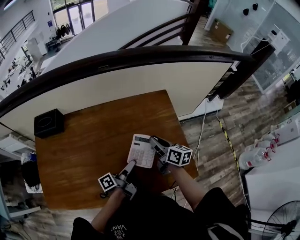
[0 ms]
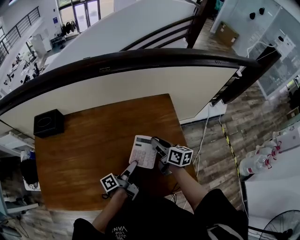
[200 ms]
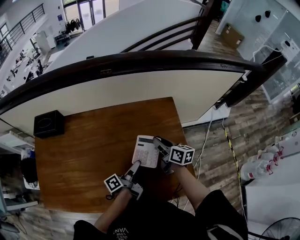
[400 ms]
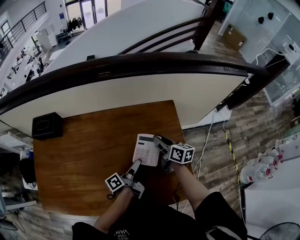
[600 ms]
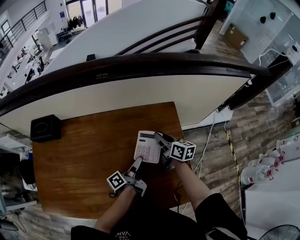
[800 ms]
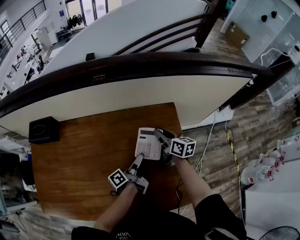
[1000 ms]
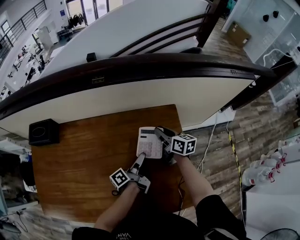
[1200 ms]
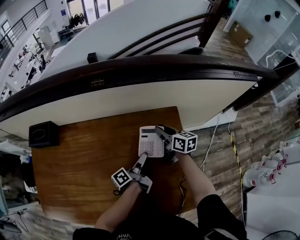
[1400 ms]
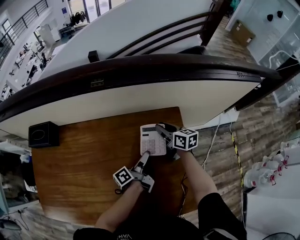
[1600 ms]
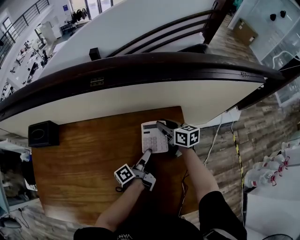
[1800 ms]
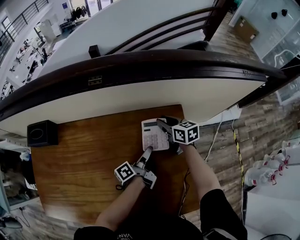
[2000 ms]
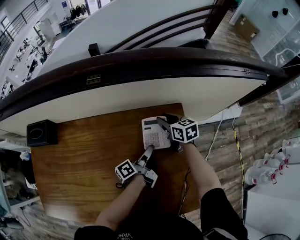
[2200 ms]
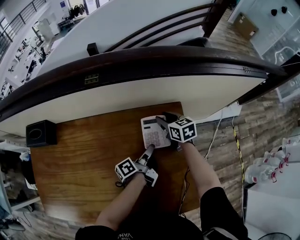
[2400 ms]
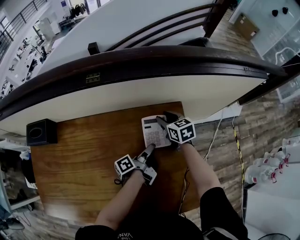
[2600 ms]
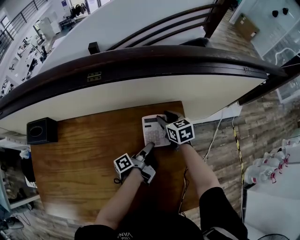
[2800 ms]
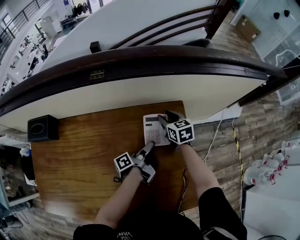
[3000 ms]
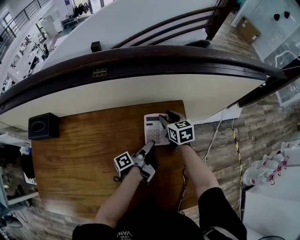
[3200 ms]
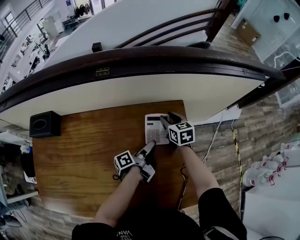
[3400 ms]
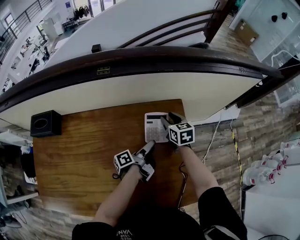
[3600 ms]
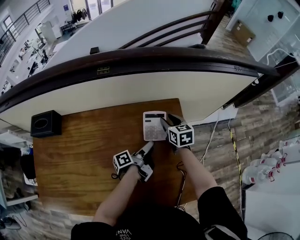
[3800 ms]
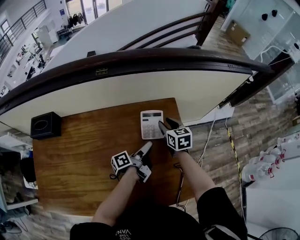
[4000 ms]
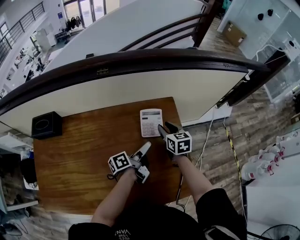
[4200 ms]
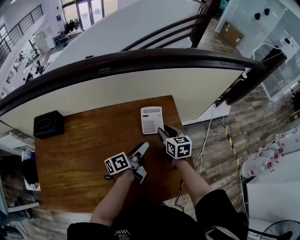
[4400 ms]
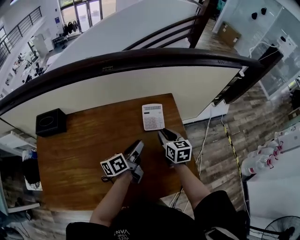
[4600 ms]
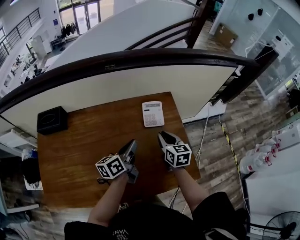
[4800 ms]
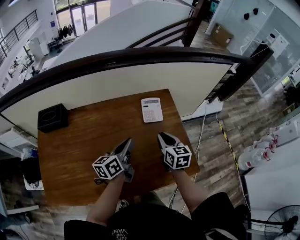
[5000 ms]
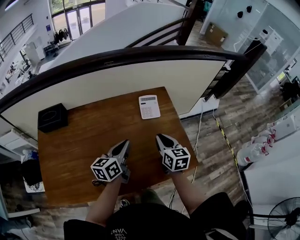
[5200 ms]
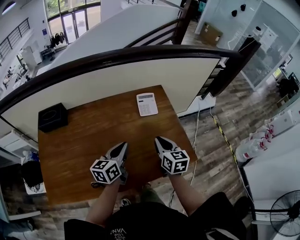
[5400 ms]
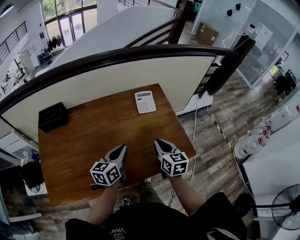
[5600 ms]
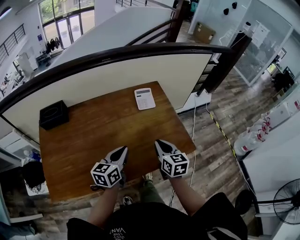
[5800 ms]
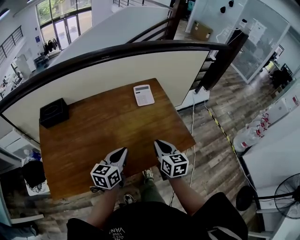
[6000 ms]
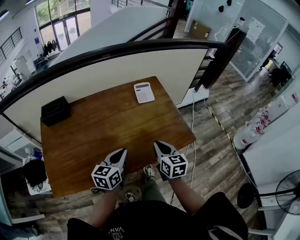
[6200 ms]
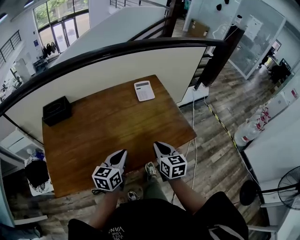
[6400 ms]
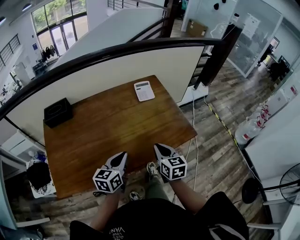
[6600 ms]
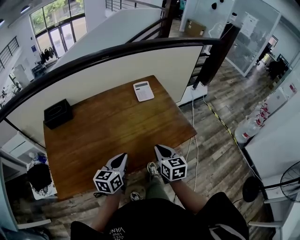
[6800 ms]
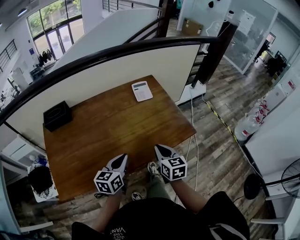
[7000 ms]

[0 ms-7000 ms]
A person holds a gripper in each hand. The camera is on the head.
0 ms to 1400 ms: The right gripper moves about 20 cm.
1400 ms to 2800 ms: The right gripper shifts by approximately 5 cm, and changes its angle by some 30 degrees.
2800 ms to 4200 ms: The right gripper moves approximately 10 cm.
4200 ms to 5600 ms: The right gripper ends up about 30 cm from where it was, and closes its fingers.
5600 ms to 7000 ms: The right gripper ends up approximately 15 cm from where it was.

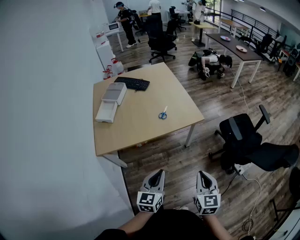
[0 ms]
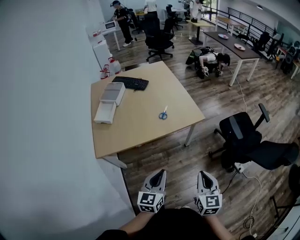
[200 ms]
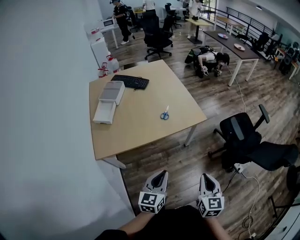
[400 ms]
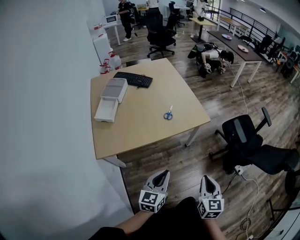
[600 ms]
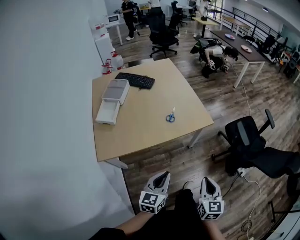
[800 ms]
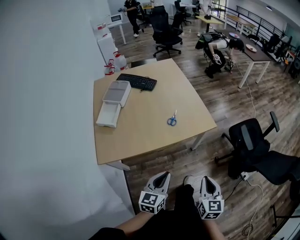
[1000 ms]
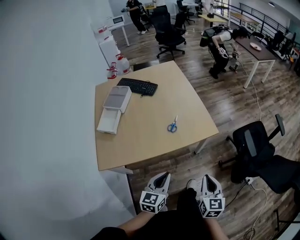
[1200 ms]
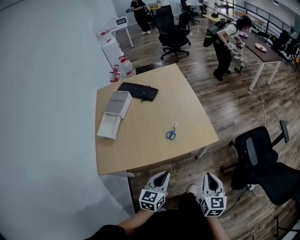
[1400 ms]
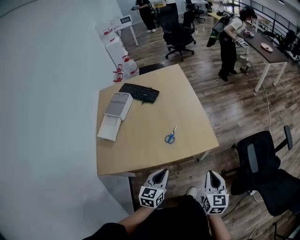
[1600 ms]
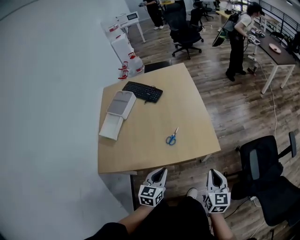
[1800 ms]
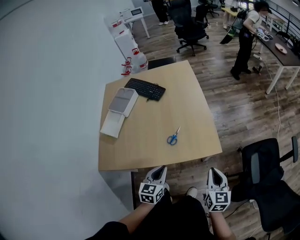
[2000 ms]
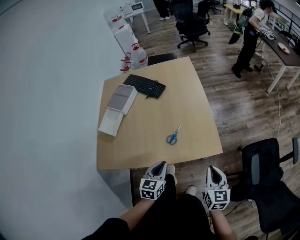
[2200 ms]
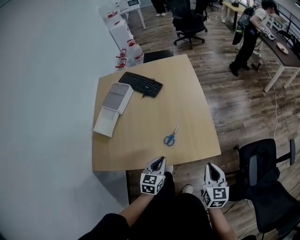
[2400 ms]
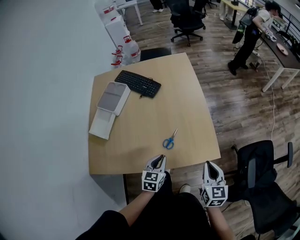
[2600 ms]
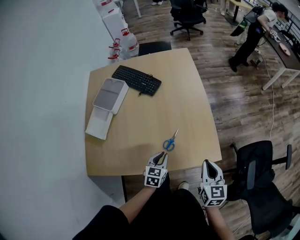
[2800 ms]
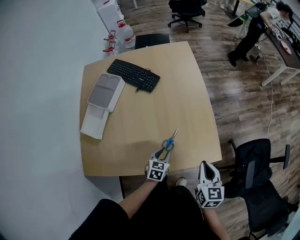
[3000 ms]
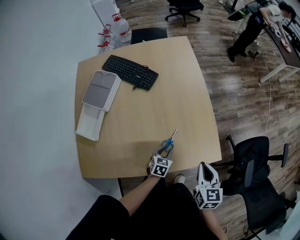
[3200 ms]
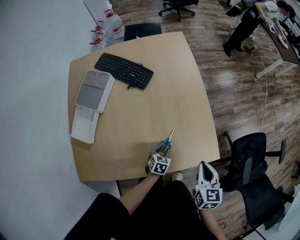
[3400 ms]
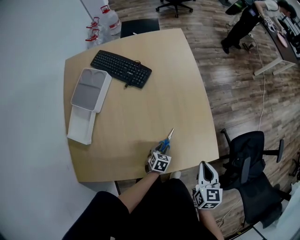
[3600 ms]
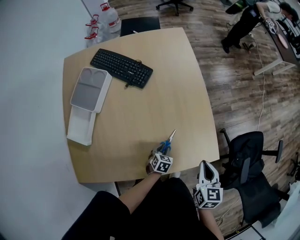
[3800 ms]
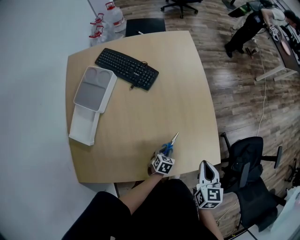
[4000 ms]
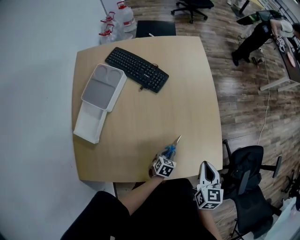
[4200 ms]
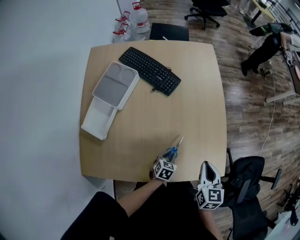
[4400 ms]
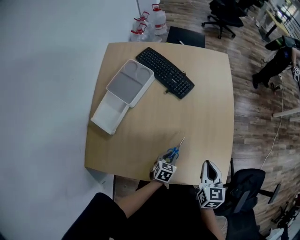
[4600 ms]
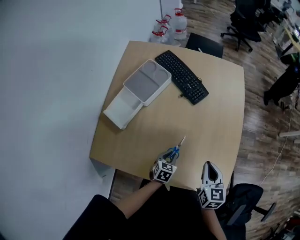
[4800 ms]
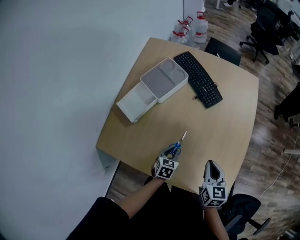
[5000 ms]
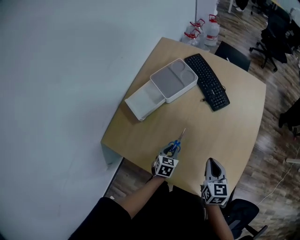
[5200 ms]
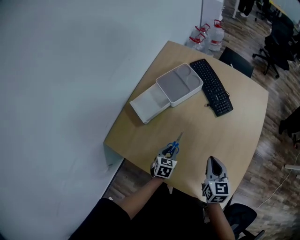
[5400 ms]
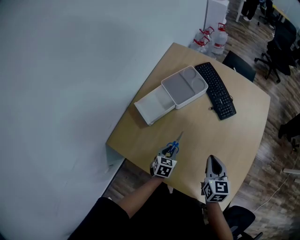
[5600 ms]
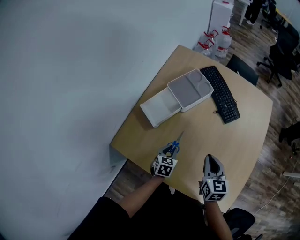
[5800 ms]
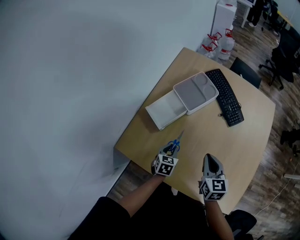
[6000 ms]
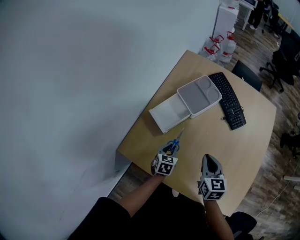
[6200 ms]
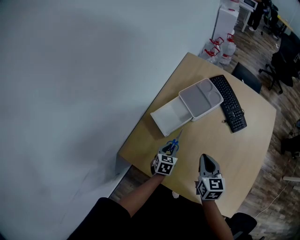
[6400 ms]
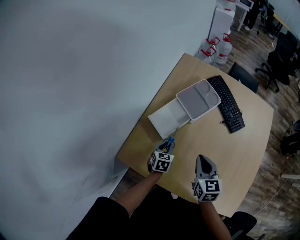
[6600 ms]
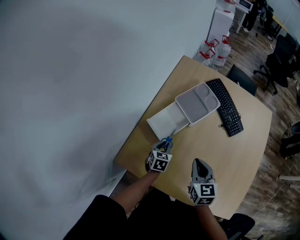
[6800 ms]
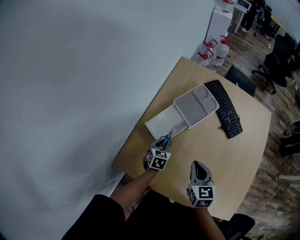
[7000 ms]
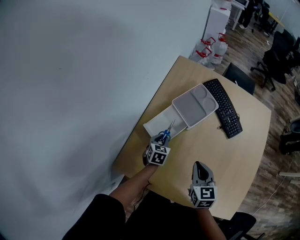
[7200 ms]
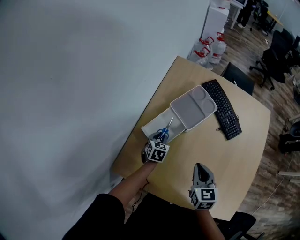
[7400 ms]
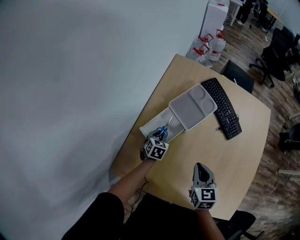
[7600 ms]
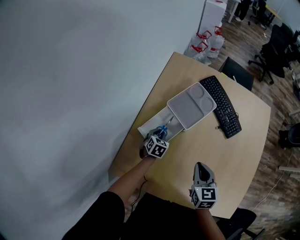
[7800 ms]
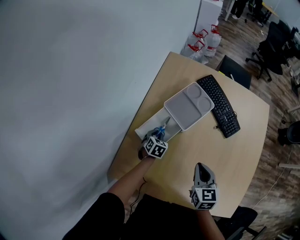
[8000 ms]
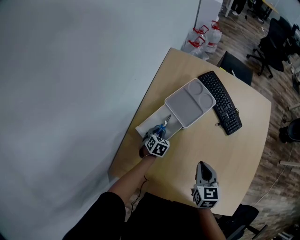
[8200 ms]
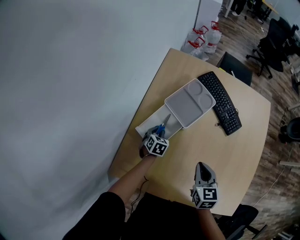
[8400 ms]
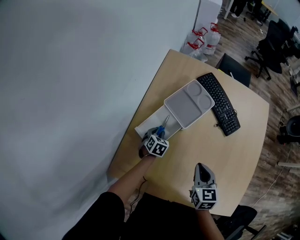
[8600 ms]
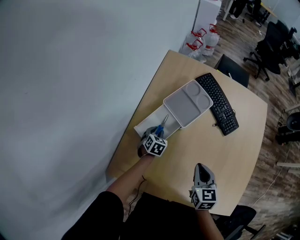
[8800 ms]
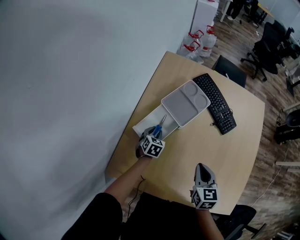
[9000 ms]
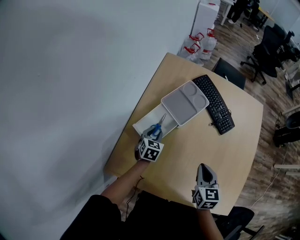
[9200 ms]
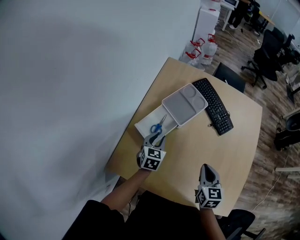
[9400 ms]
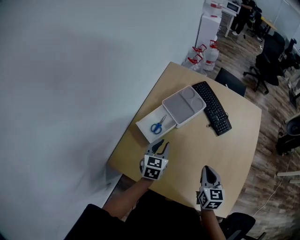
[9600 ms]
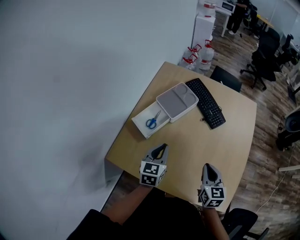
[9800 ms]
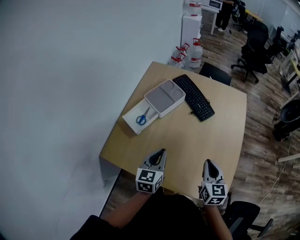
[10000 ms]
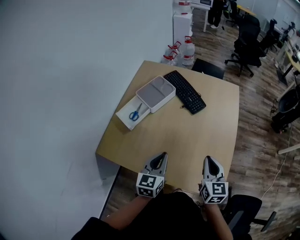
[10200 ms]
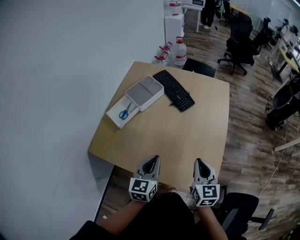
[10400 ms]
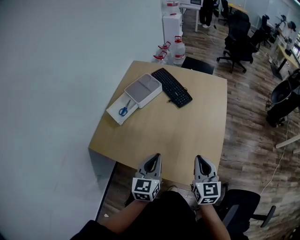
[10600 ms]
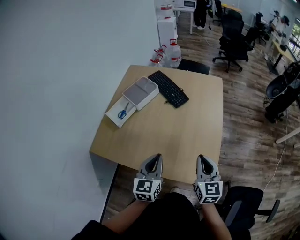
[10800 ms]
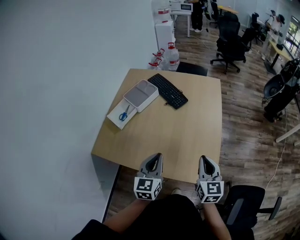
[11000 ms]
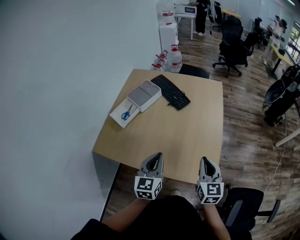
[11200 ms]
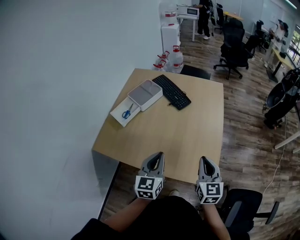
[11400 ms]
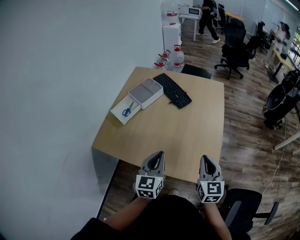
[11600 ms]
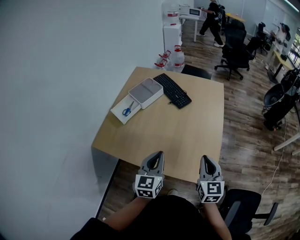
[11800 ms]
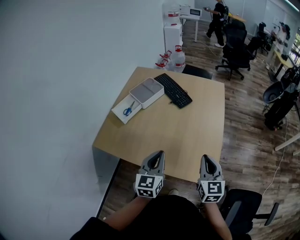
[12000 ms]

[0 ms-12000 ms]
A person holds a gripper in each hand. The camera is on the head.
0 ms to 1600 ms: The two grippers go roughly 30 cm forward.
1600 ms to 3000 ms: The left gripper shifts approximately 30 cm forward and downward. Meanwhile the right gripper travels forward by approximately 20 cm.
3000 ms to 4400 ms: The left gripper moves downward, some 5 cm, while the right gripper shifts some 15 cm to the left and forward.
4400 ms to 6000 ms: The right gripper moves roughly 25 cm, and swivels approximately 40 degrees. Meanwhile the left gripper ends up some 30 cm from where it was, and turns by some 40 degrees.
6000 ms to 7600 ms: The left gripper shifts some 20 cm forward and to the left. The right gripper is displaced to the left and forward by some 10 cm.
7600 ms to 9000 ms: The grippers stay close to where they were, moving slightly.
9000 ms to 10400 ms: The left gripper moves backward, to the right and upward, about 50 cm, angles its fingers upward, by some 30 degrees, and closes, while the right gripper is displaced to the right, backward and upward by approximately 35 cm.
10400 ms to 12000 ms: Both grippers move backward, roughly 10 cm.

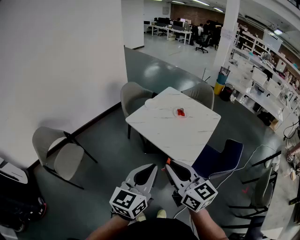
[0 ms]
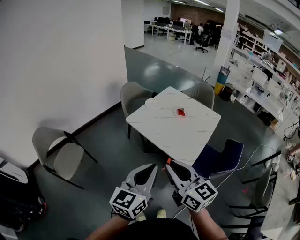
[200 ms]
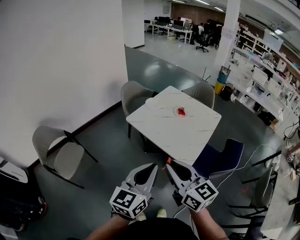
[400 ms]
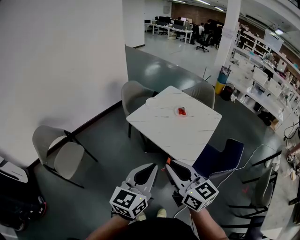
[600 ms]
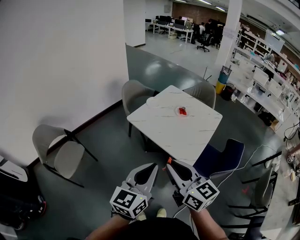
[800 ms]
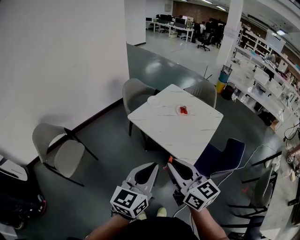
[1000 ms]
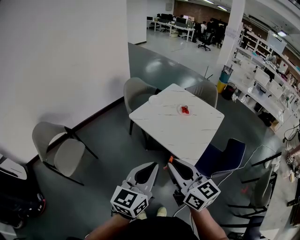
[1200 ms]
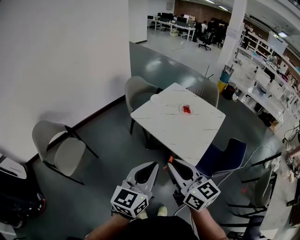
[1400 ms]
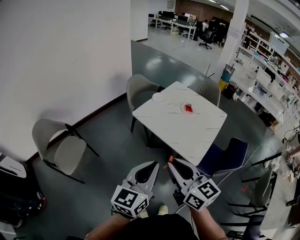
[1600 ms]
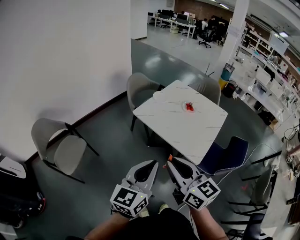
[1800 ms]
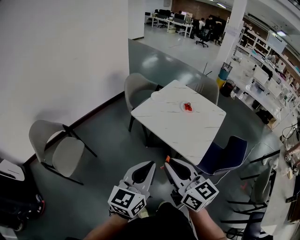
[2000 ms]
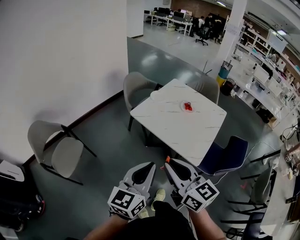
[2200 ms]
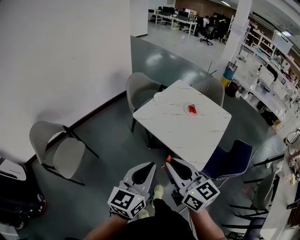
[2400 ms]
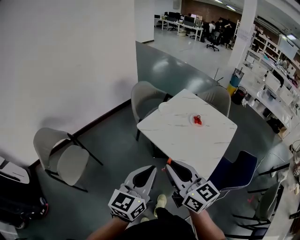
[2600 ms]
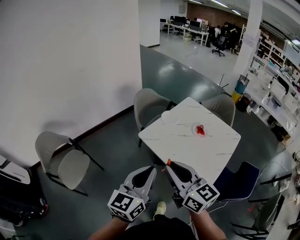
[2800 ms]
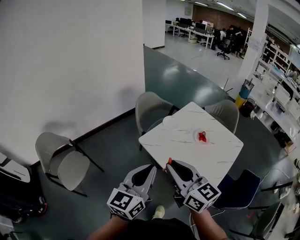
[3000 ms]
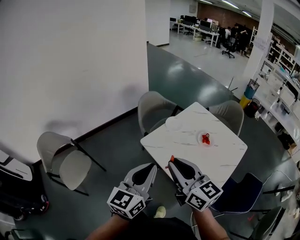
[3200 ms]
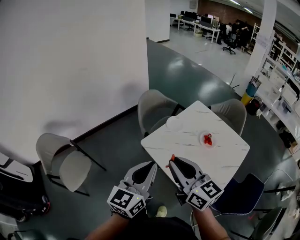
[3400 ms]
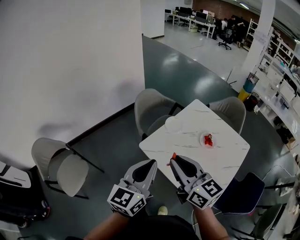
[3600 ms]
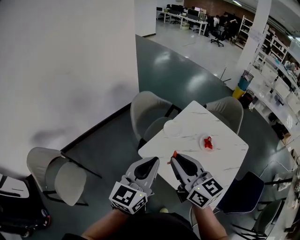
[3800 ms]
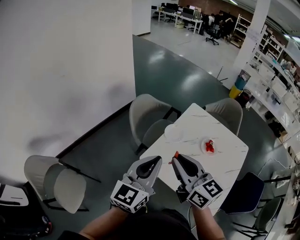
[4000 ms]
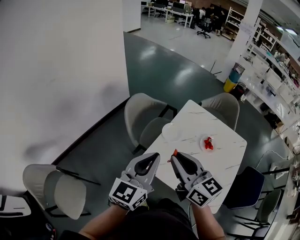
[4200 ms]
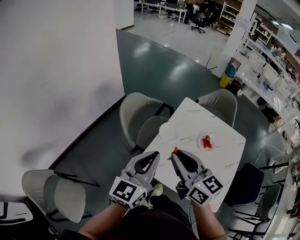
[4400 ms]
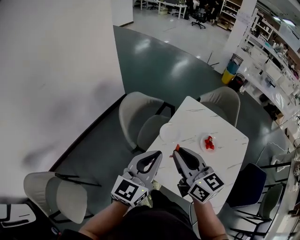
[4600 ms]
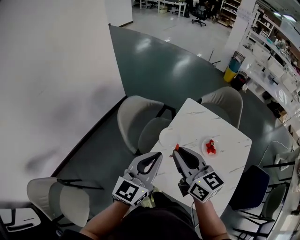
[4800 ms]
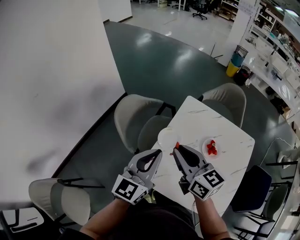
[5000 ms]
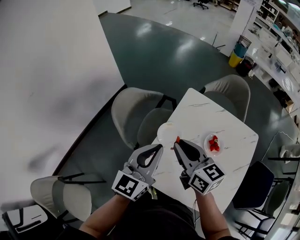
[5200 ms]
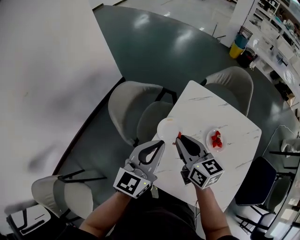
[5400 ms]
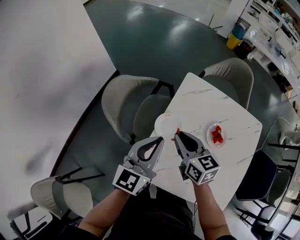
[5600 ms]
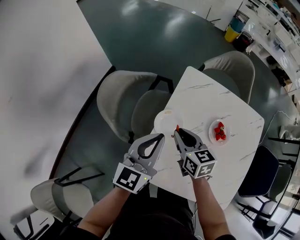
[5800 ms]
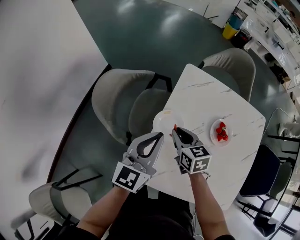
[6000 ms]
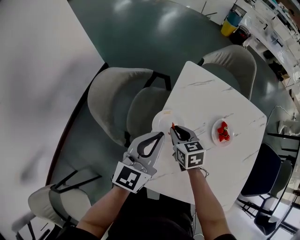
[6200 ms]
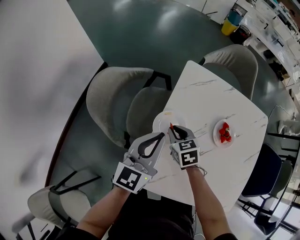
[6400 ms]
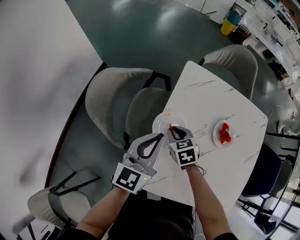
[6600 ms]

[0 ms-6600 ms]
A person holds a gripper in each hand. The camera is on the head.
0 ms to 1600 ms: Both grippers move to the left, some 5 cm.
1600 ms to 3200 ms: The grippers both shift forward by some 25 cm.
3200 ms to 5000 ms: Both grippers move forward, some 35 cm. The left gripper turns by some 20 degrees. Meanwhile the right gripper swivels roughly 20 degrees.
5000 ms to 6600 ms: The left gripper travels downward and forward by roughly 25 cm, while the right gripper goes roughly 35 cm downward, and points its fingers roughly 40 degrees further downward.
